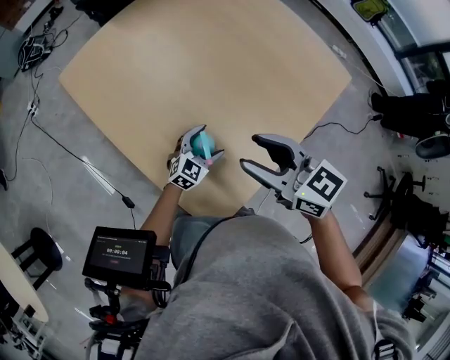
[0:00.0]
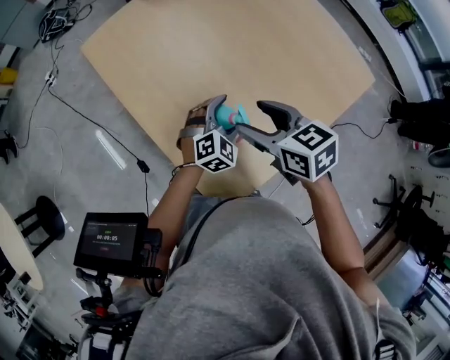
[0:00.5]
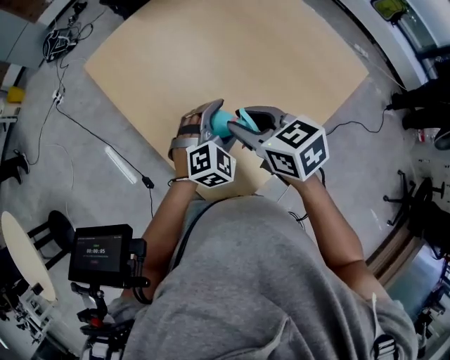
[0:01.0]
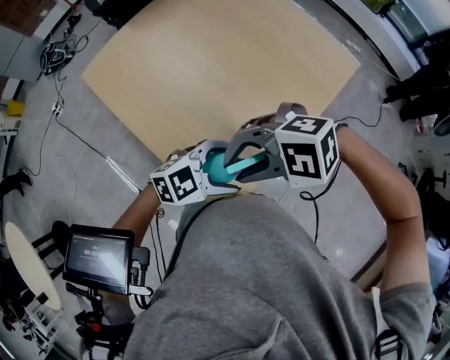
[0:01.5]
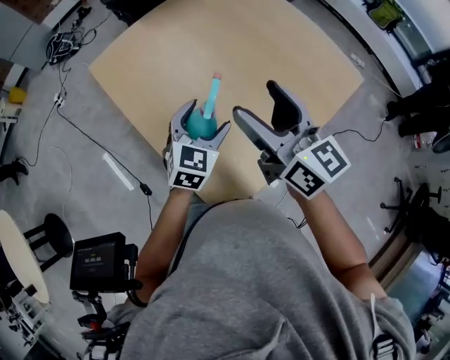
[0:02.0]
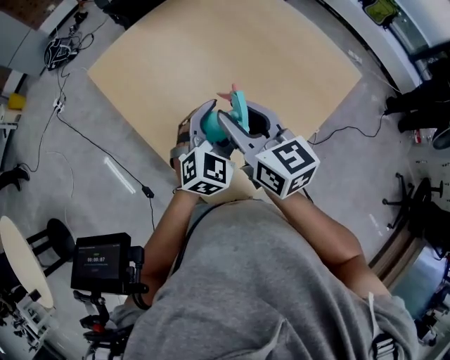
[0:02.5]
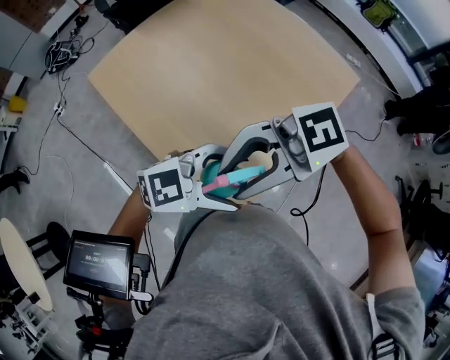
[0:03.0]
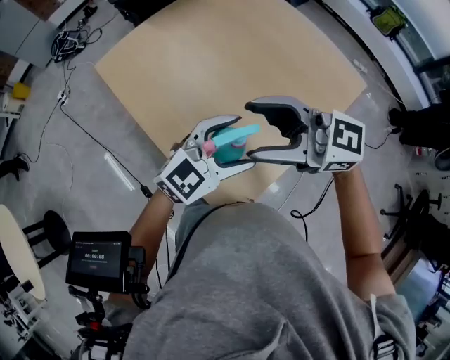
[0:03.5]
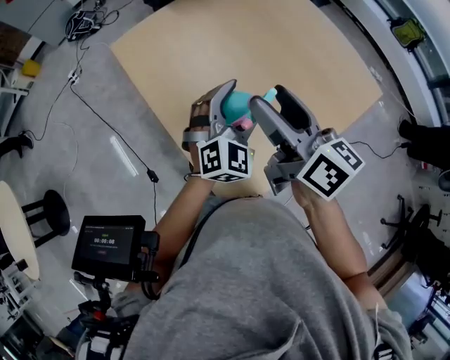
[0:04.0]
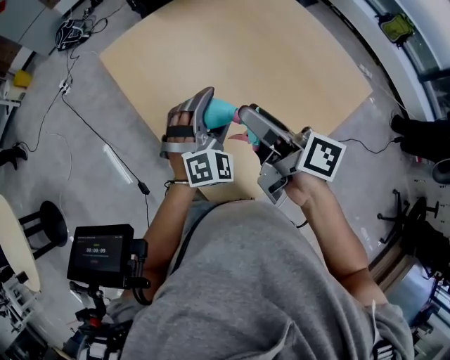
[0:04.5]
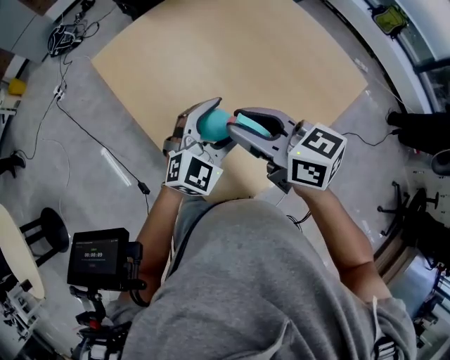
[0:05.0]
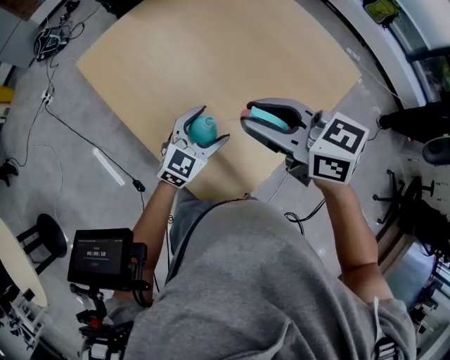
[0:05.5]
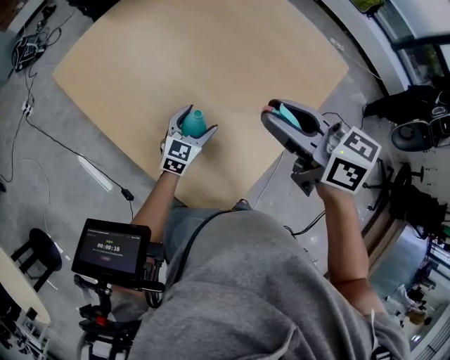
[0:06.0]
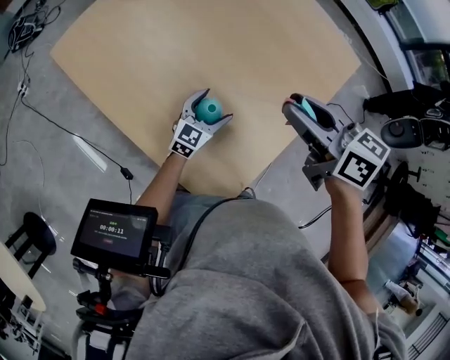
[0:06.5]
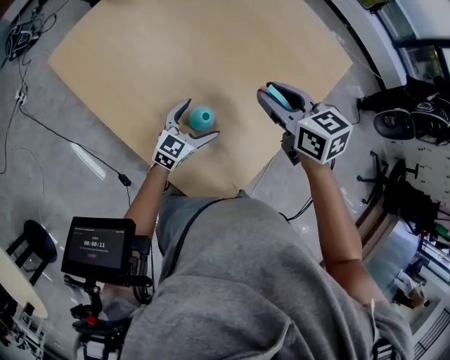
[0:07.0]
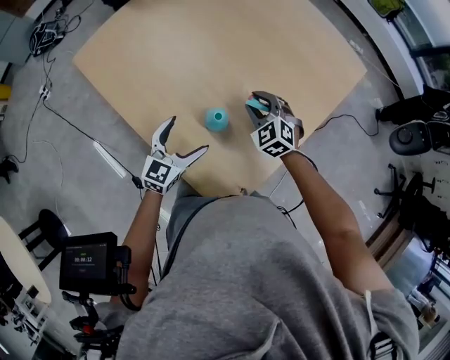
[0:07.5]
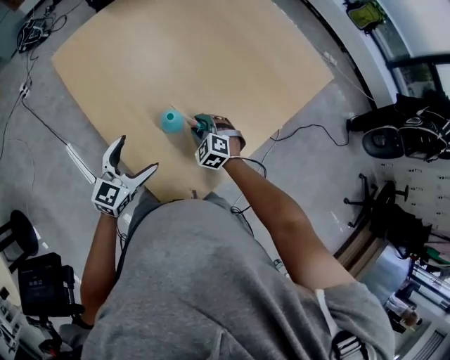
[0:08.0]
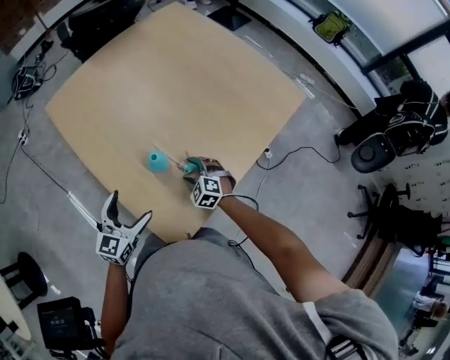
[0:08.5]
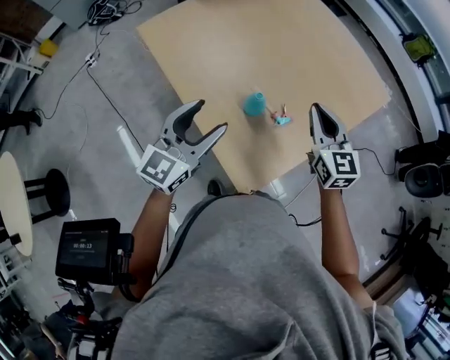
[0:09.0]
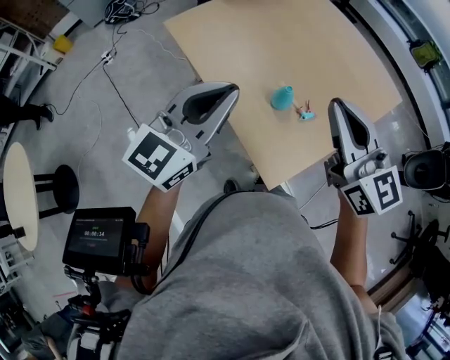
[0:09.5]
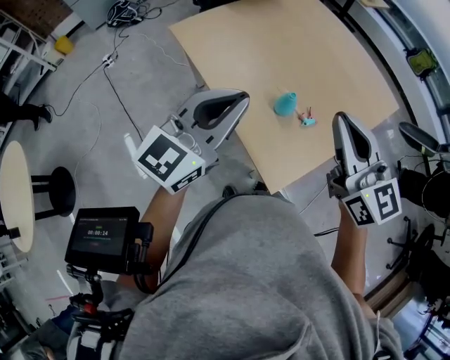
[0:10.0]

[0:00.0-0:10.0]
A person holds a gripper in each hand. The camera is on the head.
0:00.0 to 0:02.0: The right gripper moves roughly 10 cm, turns by roughly 30 degrees, and opens its fingers. The left gripper travels upward by some 15 cm, and turns by approximately 20 degrees.
0:02.0 to 0:04.0: The right gripper closes and opens again; the left gripper turns by approximately 30 degrees.
0:04.0 to 0:06.0: The left gripper is displaced downward by some 20 cm, and turns by approximately 40 degrees. The right gripper travels to the right and downward by some 10 cm, changes its angle by about 20 degrees, and closes its fingers.
0:06.0 to 0:08.0: The right gripper shifts approximately 30 cm downward, and rotates around the line of its fingers by about 60 degrees, counterclockwise from behind. Meanwhile the left gripper moves backward, upward and to the left, roughly 20 cm.
0:08.0 to 0:10.0: The left gripper shifts some 30 cm upward and backward, rotates roughly 20 degrees, and closes. Meanwhile the right gripper is displaced upward and backward by roughly 50 cm, tilts its fingers approximately 50 degrees upward, and closes its fingers.

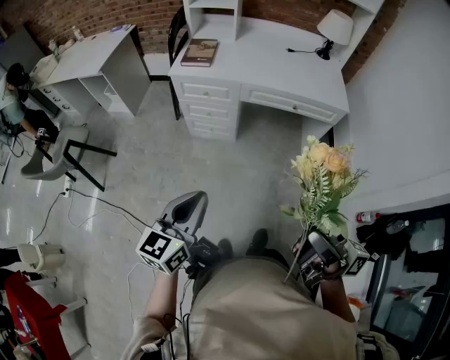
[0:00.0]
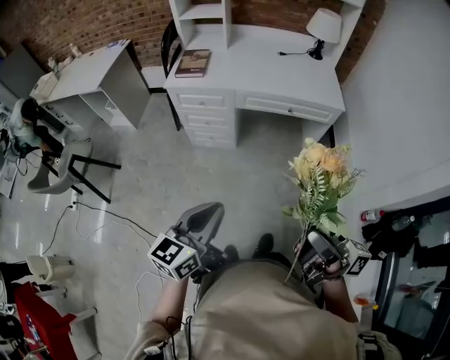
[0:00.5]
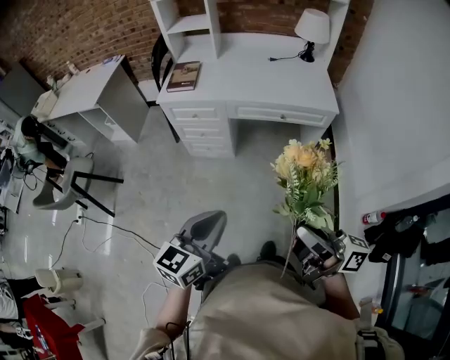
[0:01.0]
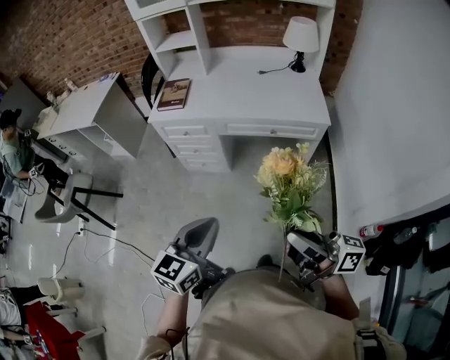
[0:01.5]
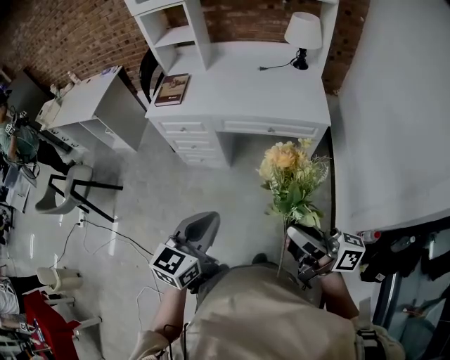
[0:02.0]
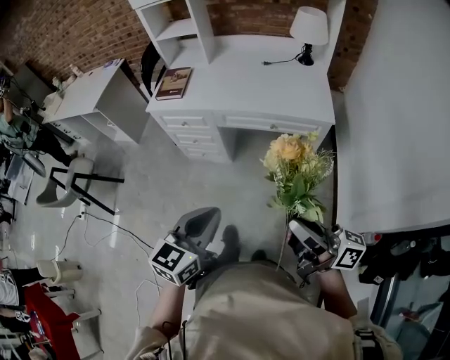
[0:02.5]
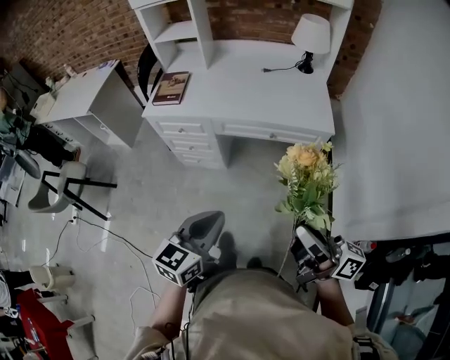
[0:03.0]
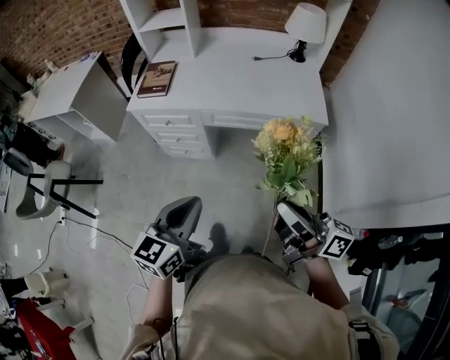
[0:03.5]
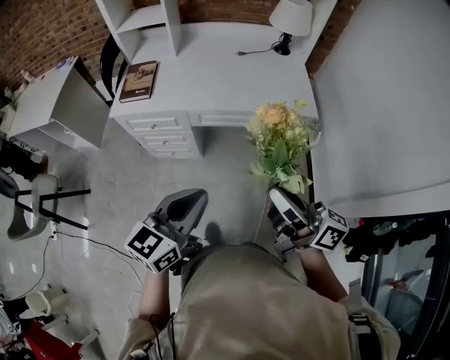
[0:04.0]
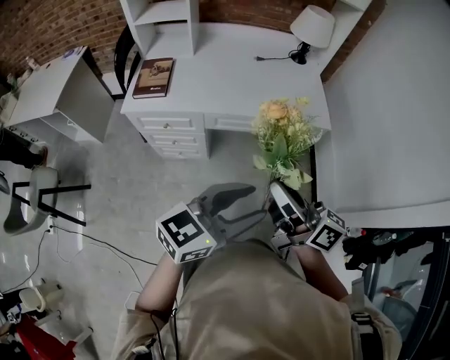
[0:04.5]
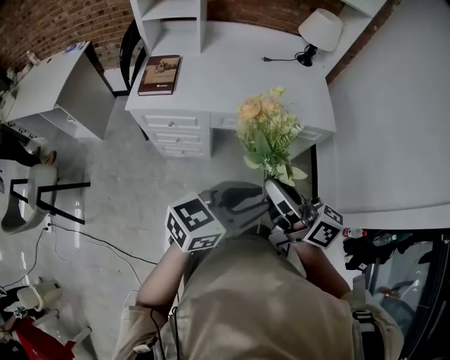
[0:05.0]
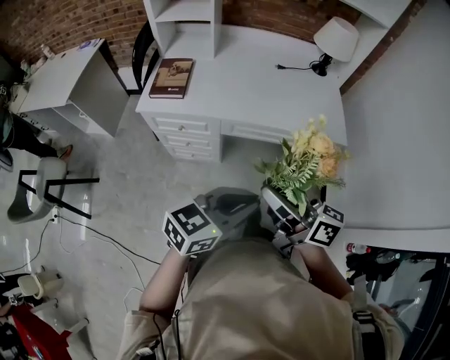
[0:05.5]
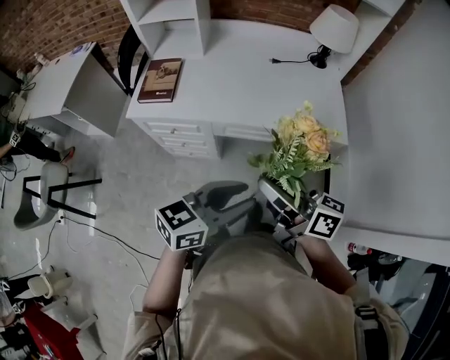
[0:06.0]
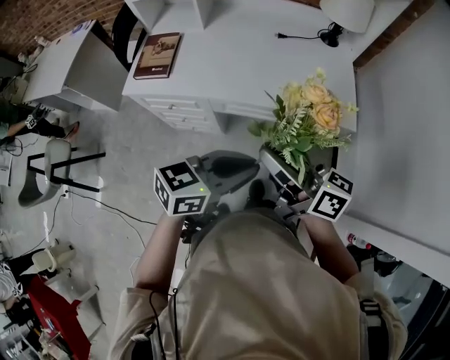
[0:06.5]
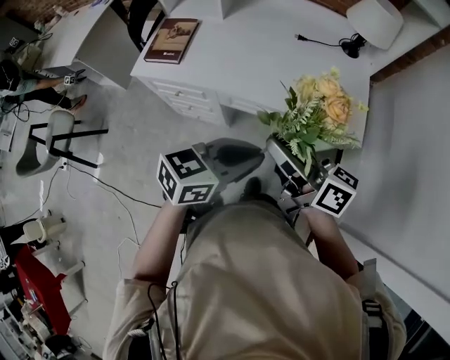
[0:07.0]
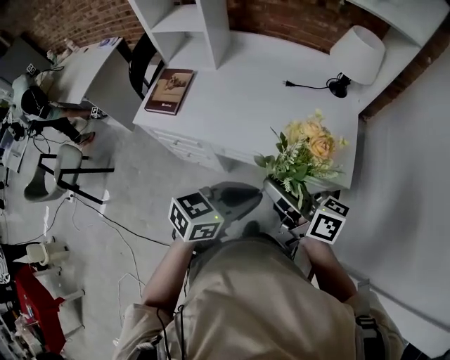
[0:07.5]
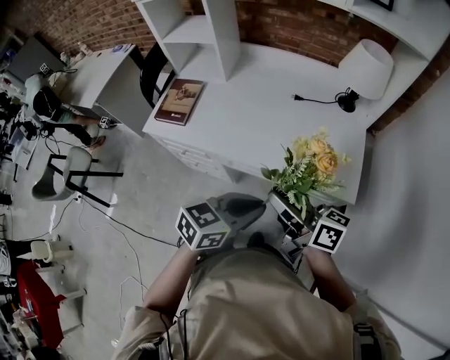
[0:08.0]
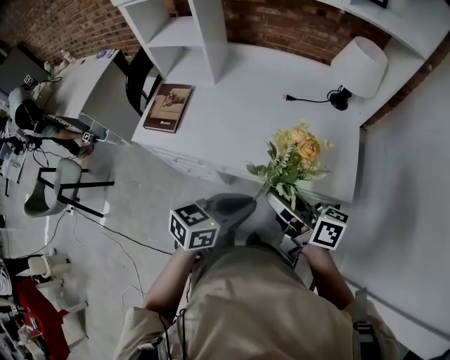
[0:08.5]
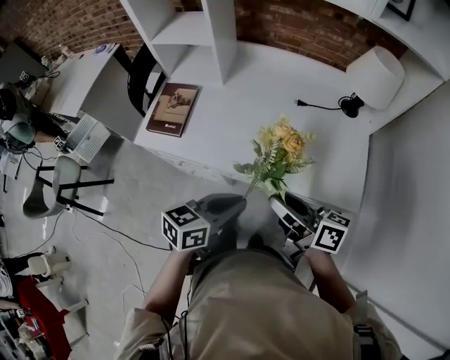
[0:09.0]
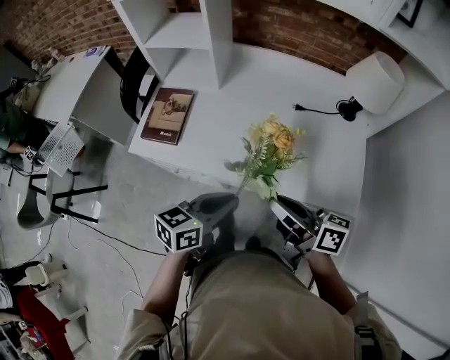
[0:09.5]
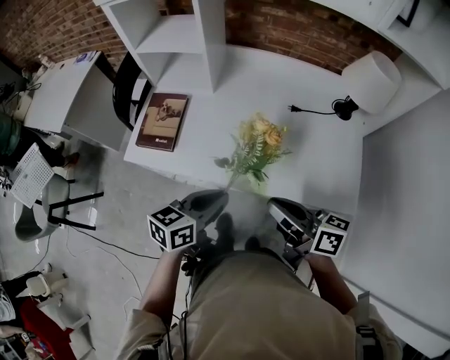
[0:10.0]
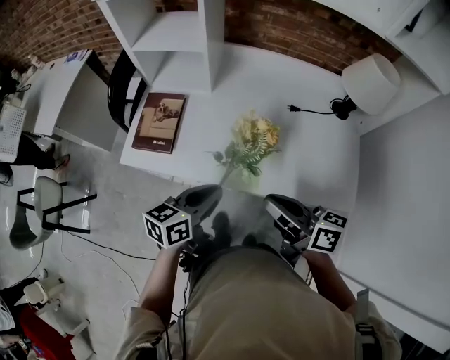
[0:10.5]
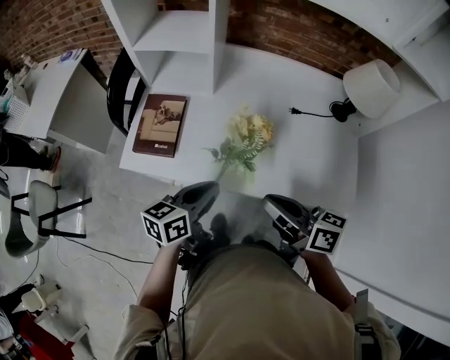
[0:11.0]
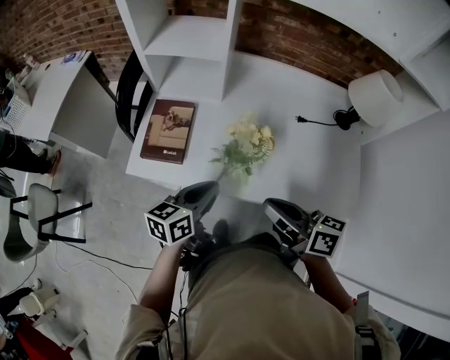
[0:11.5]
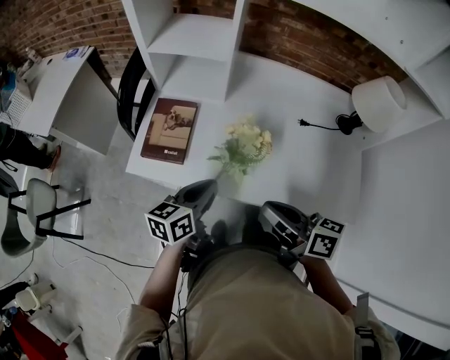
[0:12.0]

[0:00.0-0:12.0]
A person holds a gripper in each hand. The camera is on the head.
0:00.0 to 0:02.0: The left gripper is displaced to the right by approximately 20 cm. Meanwhile the right gripper travels to the right and forward by roughly 15 cm.
0:02.0 to 0:04.0: The left gripper is displaced forward by some 10 cm. Meanwhile the right gripper is displaced forward and to the left by approximately 15 cm.
0:04.0 to 0:06.0: The right gripper travels forward and to the left by approximately 15 cm. Meanwhile the left gripper moves forward, approximately 10 cm, and opens.
0:06.0 to 0:08.0: The grippers both shift forward and to the right by approximately 15 cm.
0:08.0 to 0:10.0: The right gripper is displaced forward and to the left by some 10 cm; the left gripper shifts approximately 20 cm to the left and forward.
0:10.0 to 0:12.0: The right gripper is displaced to the left by approximately 10 cm; the left gripper moves to the left and forward, approximately 10 cm.

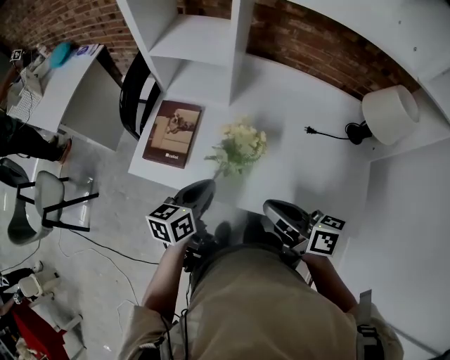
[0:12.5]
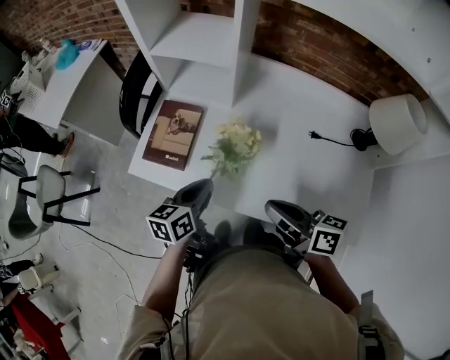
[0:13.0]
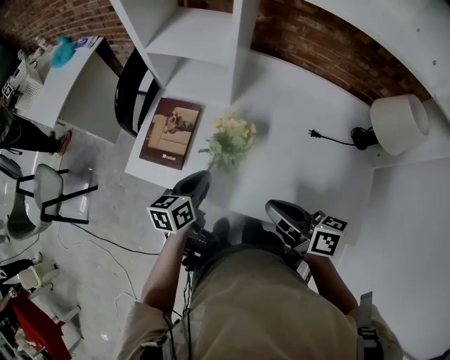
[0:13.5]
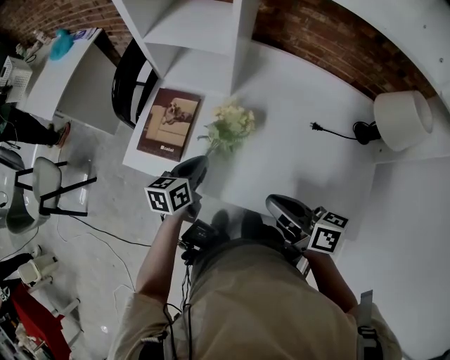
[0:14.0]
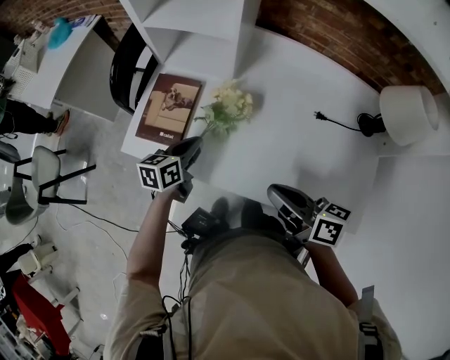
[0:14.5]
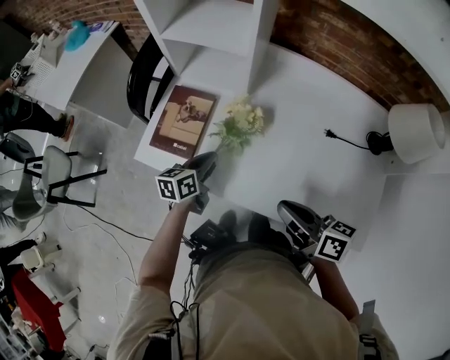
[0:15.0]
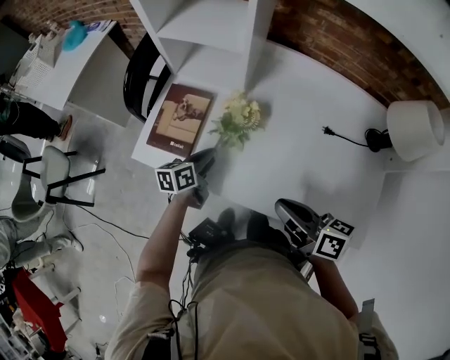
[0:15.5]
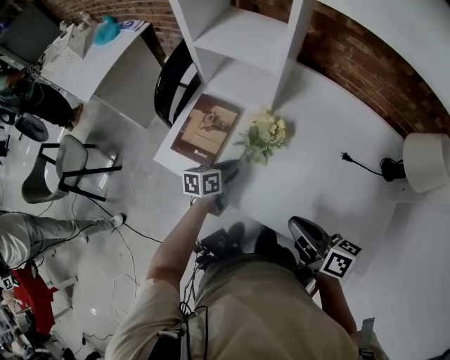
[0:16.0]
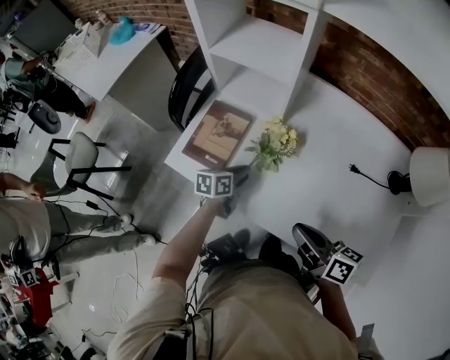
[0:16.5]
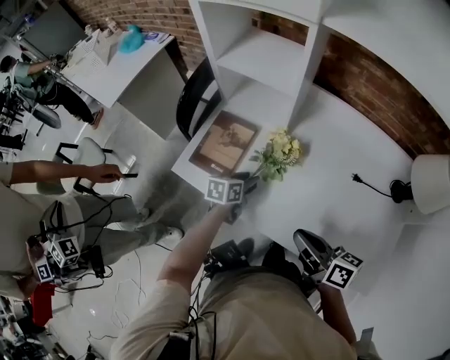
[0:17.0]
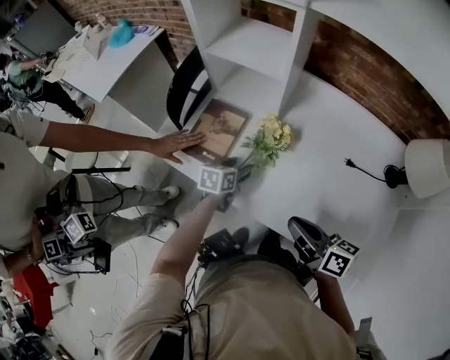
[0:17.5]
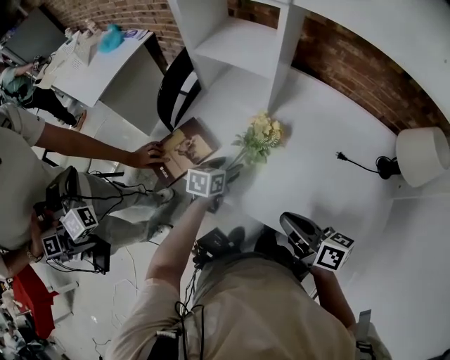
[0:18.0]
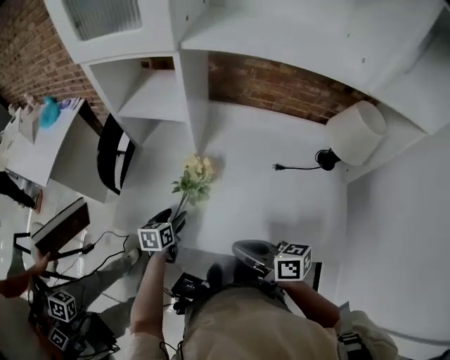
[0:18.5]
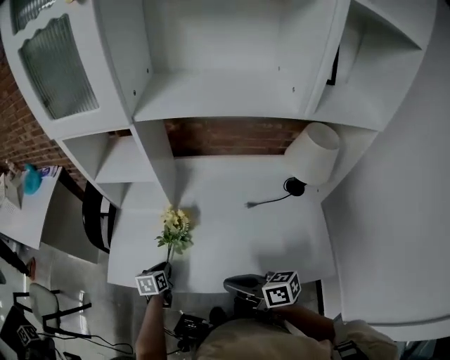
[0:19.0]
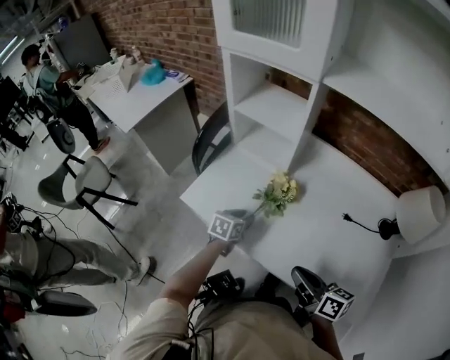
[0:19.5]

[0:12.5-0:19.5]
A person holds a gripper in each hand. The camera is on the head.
0:12.5 to 0:14.5: The left gripper moves forward and downward, approximately 10 cm.
0:14.5 to 0:16.0: The left gripper changes place by some 5 cm.
0:16.0 to 0:17.5: The left gripper opens.
0:17.5 to 0:19.5: The left gripper closes up.
